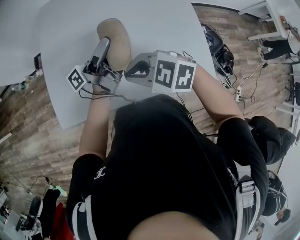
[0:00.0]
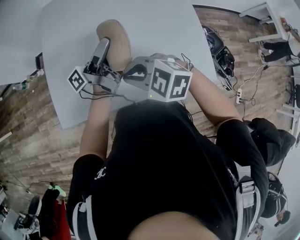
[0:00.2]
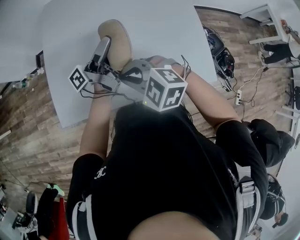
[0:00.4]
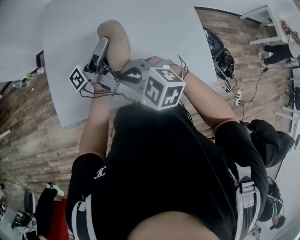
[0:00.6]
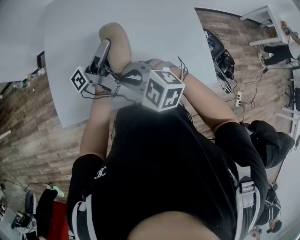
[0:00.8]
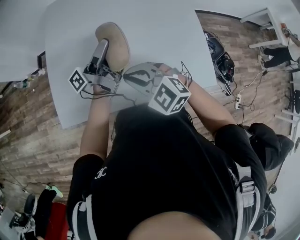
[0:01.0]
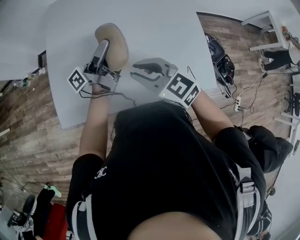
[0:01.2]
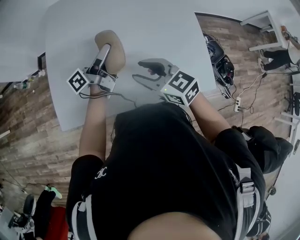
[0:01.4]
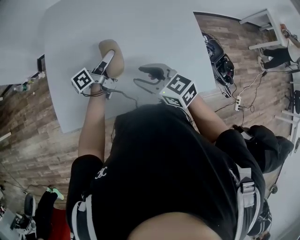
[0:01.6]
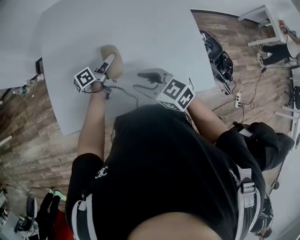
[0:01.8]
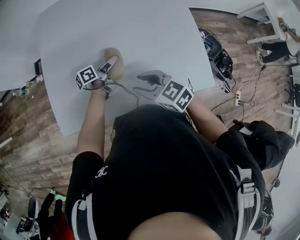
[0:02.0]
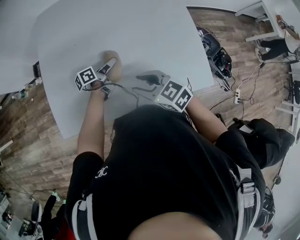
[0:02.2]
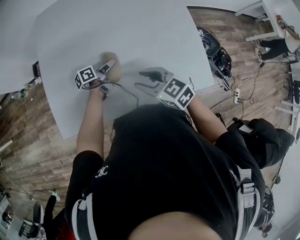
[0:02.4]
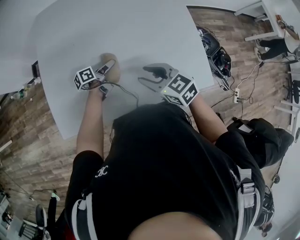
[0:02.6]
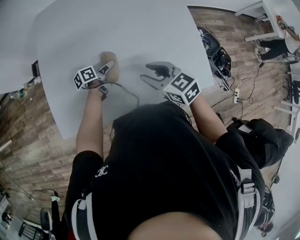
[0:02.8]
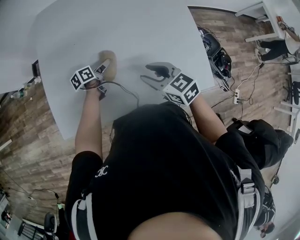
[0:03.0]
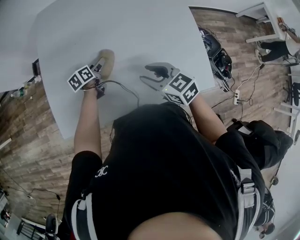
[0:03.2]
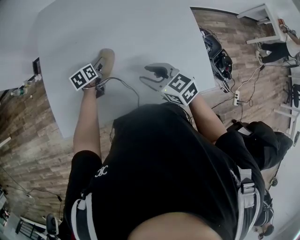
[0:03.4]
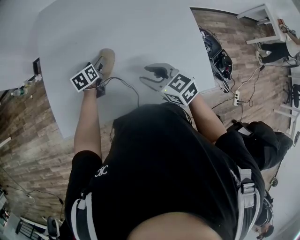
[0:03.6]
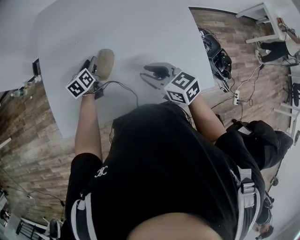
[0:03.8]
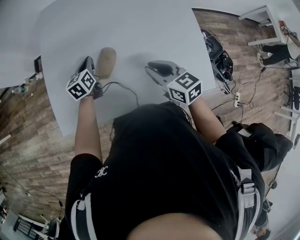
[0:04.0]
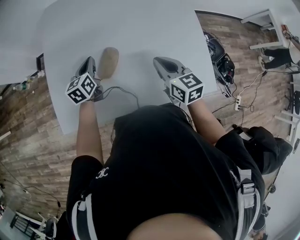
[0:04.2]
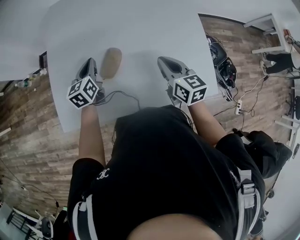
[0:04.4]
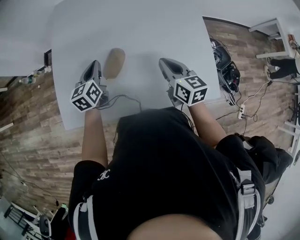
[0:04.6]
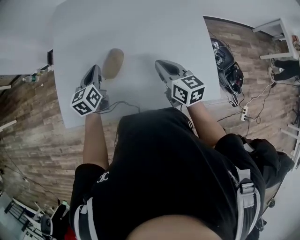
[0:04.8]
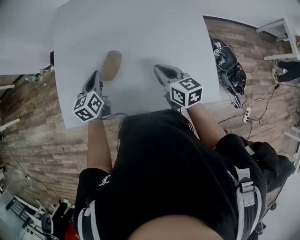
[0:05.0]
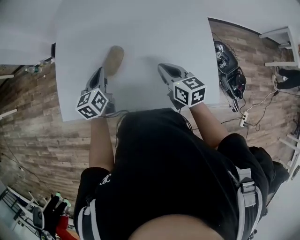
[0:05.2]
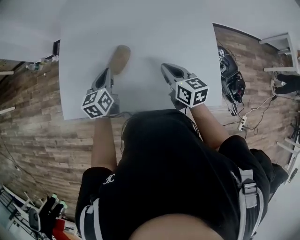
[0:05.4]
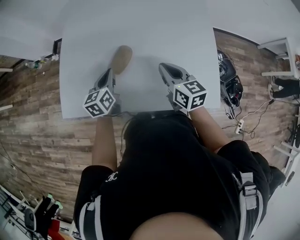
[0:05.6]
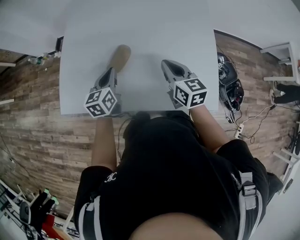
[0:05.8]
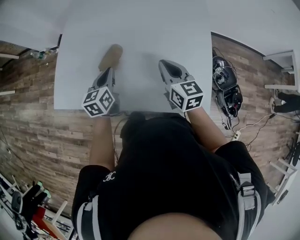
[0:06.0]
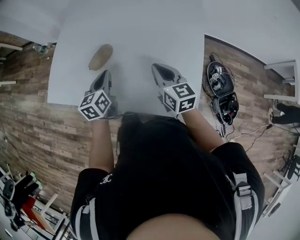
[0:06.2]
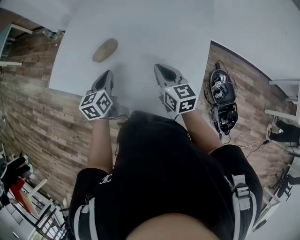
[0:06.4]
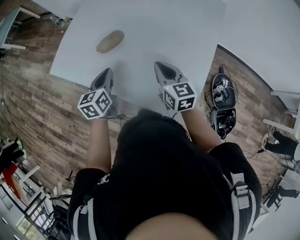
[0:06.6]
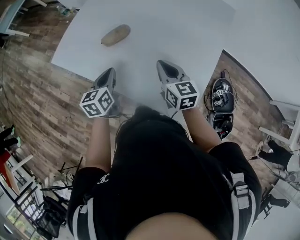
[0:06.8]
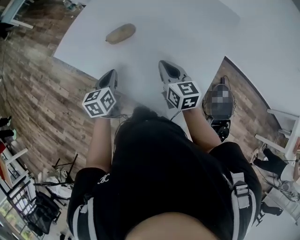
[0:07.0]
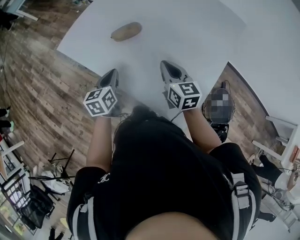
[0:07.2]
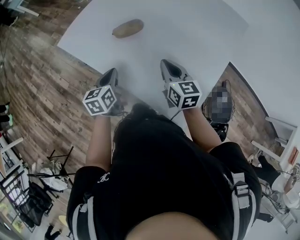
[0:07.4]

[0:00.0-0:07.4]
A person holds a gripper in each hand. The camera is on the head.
0:00.0 to 0:01.4: The left gripper moves downward, approximately 5 cm. Meanwhile the right gripper moves to the right, about 5 cm, swivels approximately 40 degrees, and opens up.
0:01.4 to 0:03.0: The left gripper travels downward by approximately 20 cm, and points its fingers roughly 50 degrees further downward; the right gripper moves downward and to the right, some 10 cm.
0:03.0 to 0:04.4: The left gripper is displaced upward and to the left by roughly 15 cm, changes its angle by roughly 50 degrees, and closes its fingers; the right gripper moves to the right, about 5 cm, turns by some 30 degrees, and closes up.
0:04.4 to 0:06.0: The right gripper is displaced to the right by roughly 10 cm. The left gripper heads to the right and backward, covering roughly 15 cm.
0:06.0 to 0:07.4: The right gripper turns by roughly 30 degrees. Meanwhile the left gripper changes place by some 10 cm, and changes its angle by some 30 degrees.

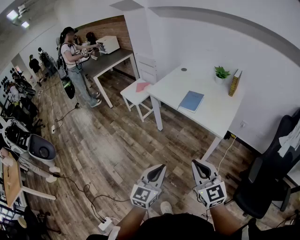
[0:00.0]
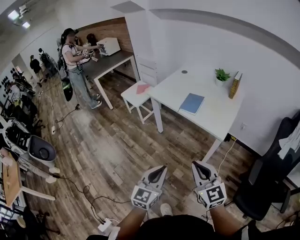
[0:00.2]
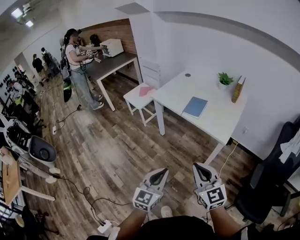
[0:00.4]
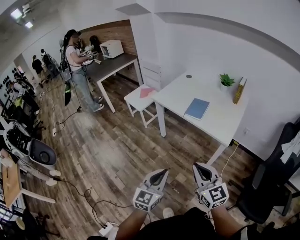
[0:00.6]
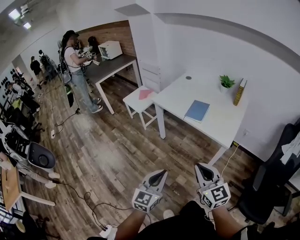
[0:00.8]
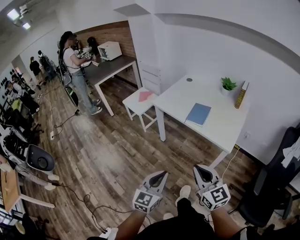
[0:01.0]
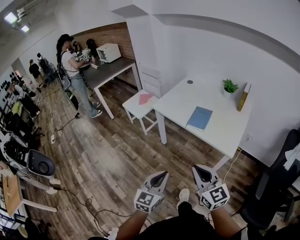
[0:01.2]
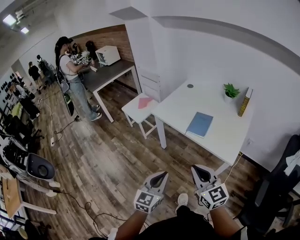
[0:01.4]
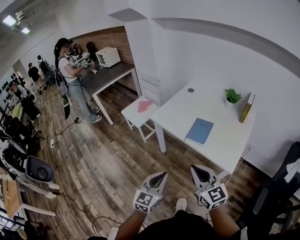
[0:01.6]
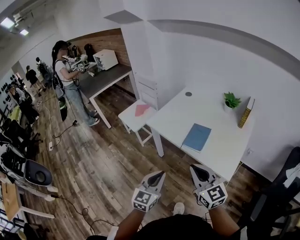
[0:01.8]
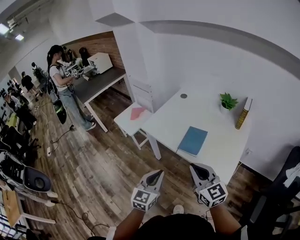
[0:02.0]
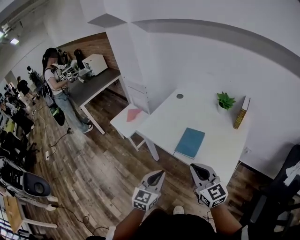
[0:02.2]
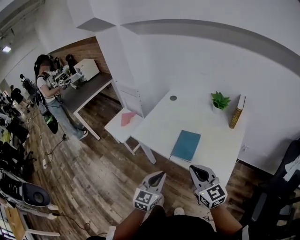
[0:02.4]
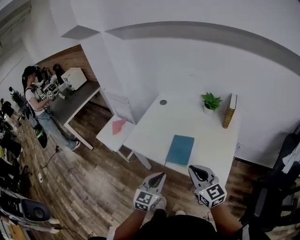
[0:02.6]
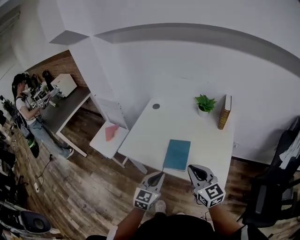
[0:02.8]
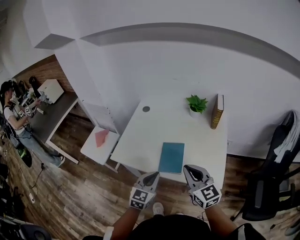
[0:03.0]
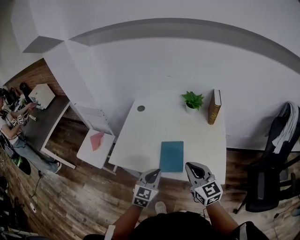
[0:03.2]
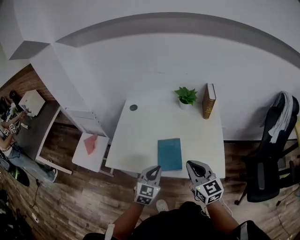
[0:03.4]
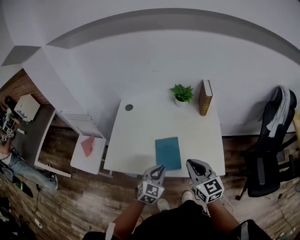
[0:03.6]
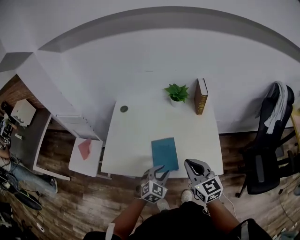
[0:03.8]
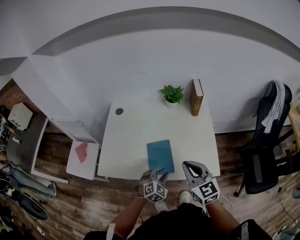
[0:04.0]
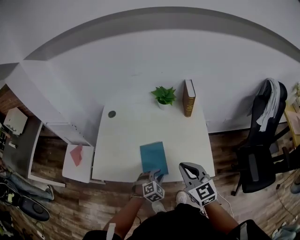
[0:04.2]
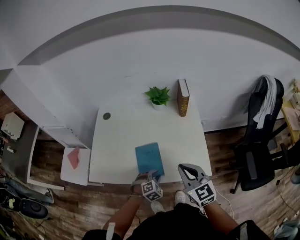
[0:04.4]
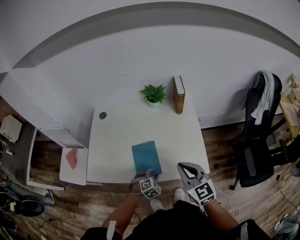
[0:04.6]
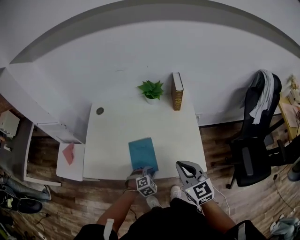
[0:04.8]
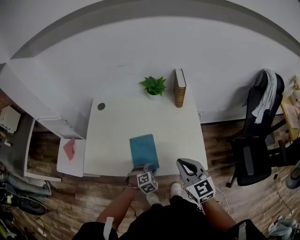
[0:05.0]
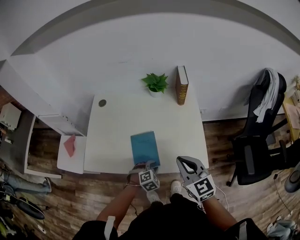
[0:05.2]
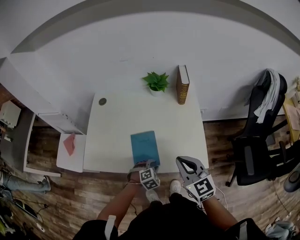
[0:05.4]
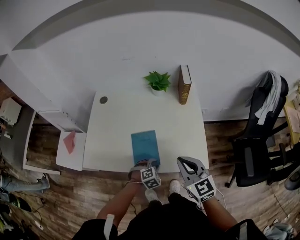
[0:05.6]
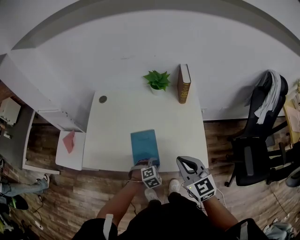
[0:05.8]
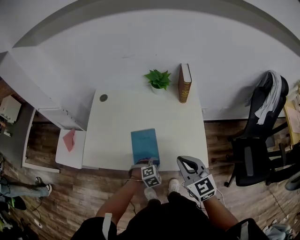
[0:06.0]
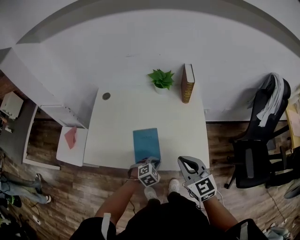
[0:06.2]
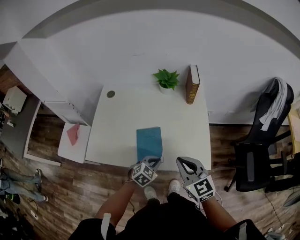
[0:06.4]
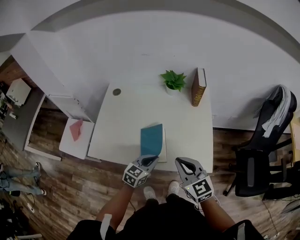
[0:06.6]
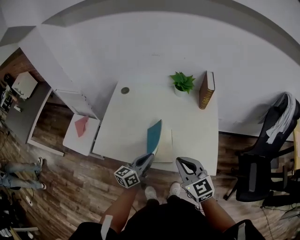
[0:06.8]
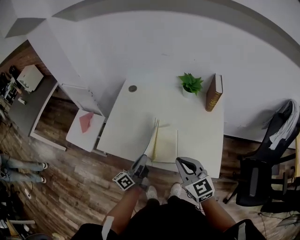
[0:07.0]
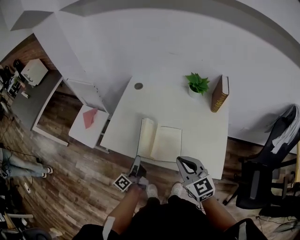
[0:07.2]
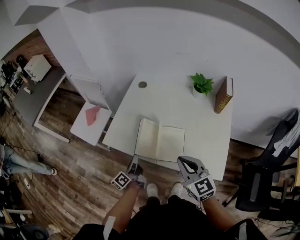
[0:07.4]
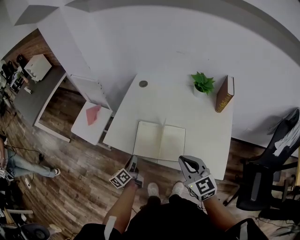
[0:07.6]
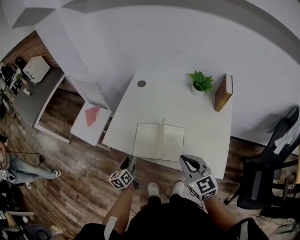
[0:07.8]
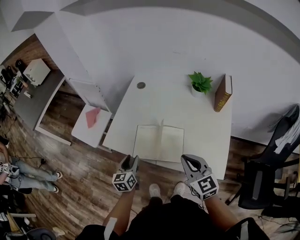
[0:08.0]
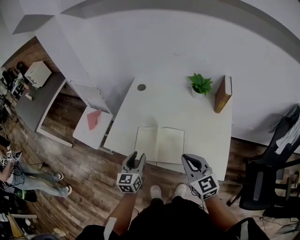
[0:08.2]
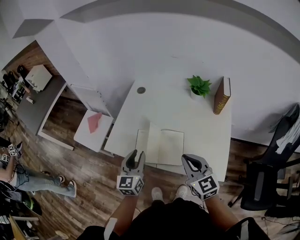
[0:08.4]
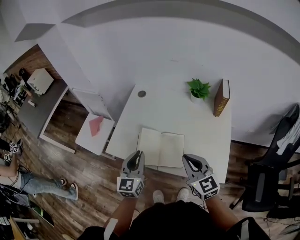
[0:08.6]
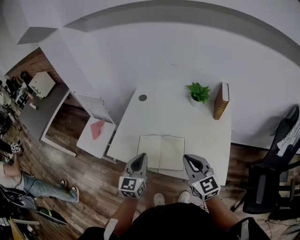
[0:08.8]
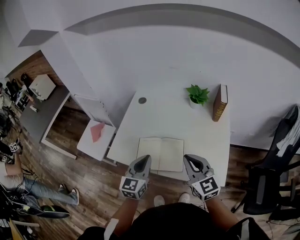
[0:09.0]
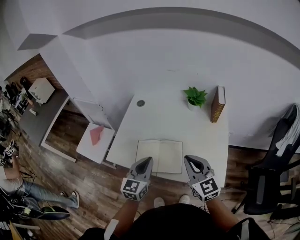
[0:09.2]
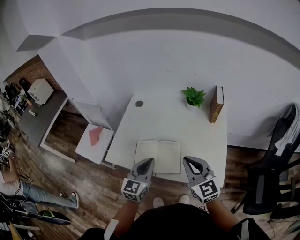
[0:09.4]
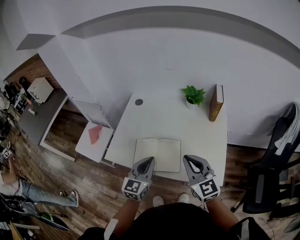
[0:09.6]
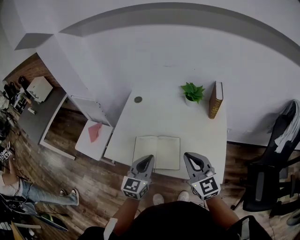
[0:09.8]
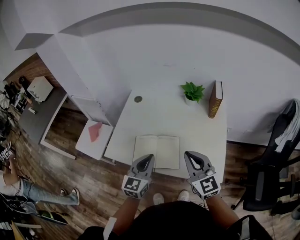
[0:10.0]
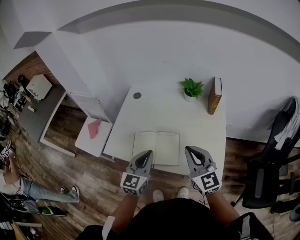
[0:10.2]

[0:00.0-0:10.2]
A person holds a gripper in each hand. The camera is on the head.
0:00.0 to 0:01.4: The two grippers go roughly 15 cm forward.
0:01.4 to 0:03.0: The two grippers go approximately 30 cm forward. The left gripper swivels about 30 degrees. The right gripper changes its angle by approximately 20 degrees.
0:03.0 to 0:04.4: The left gripper is displaced downward and to the right by roughly 20 cm, points its fingers about 40 degrees further downward, and opens up. Meanwhile the right gripper shifts roughly 5 cm to the right.
0:04.4 to 0:05.8: The grippers move only a little.
0:05.8 to 0:07.2: The right gripper ends up about 10 cm from where it was. The left gripper ends up approximately 25 cm from where it was, angles its fingers upward, by about 70 degrees, and closes its fingers.
0:07.2 to 0:08.8: The left gripper moves upward, approximately 10 cm, twists approximately 70 degrees clockwise, seen from behind, and opens, then closes once more.
0:08.8 to 0:10.2: The left gripper is displaced to the right by some 5 cm. The right gripper changes place by roughly 5 cm.

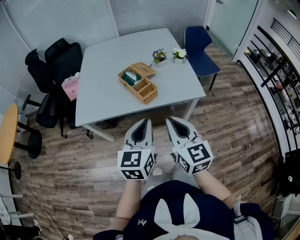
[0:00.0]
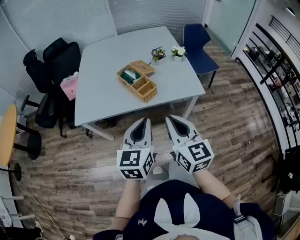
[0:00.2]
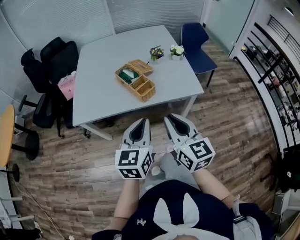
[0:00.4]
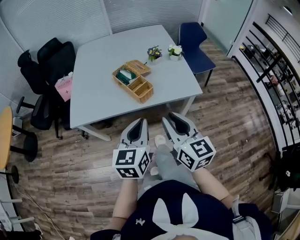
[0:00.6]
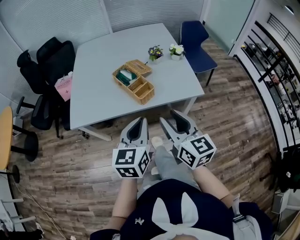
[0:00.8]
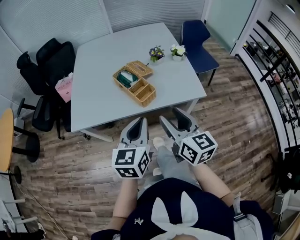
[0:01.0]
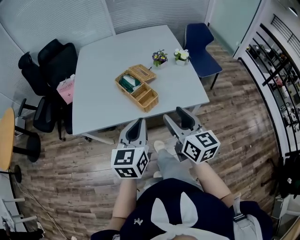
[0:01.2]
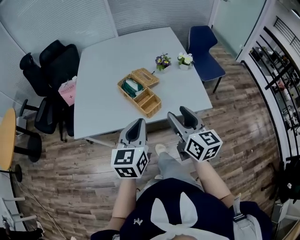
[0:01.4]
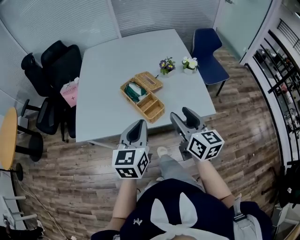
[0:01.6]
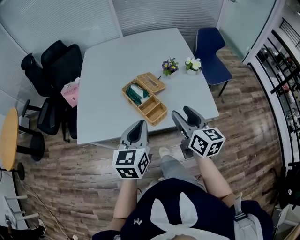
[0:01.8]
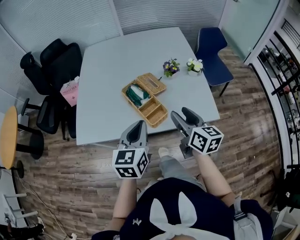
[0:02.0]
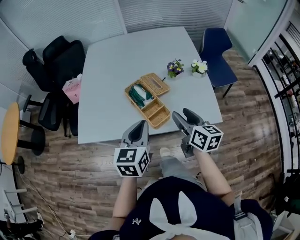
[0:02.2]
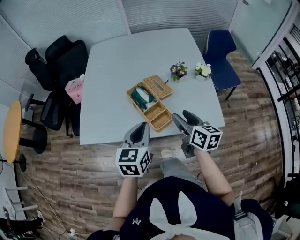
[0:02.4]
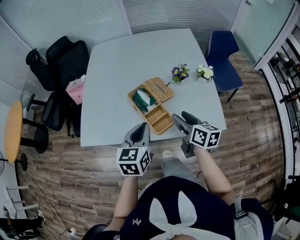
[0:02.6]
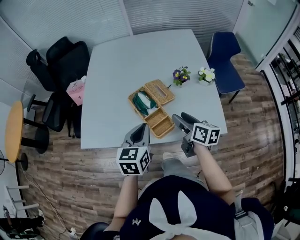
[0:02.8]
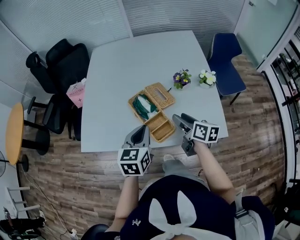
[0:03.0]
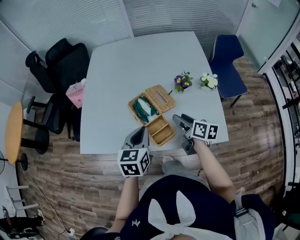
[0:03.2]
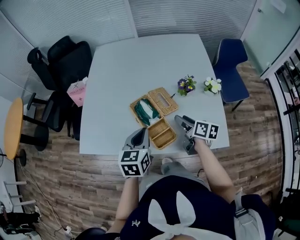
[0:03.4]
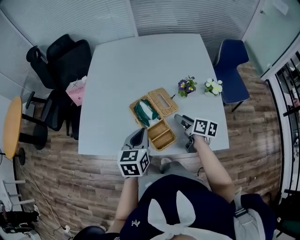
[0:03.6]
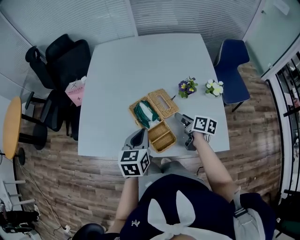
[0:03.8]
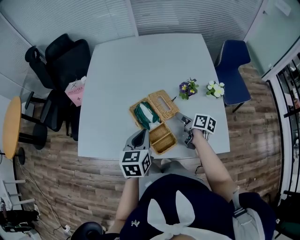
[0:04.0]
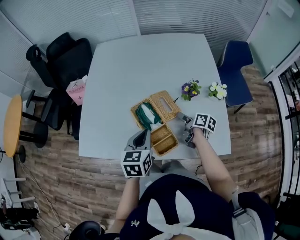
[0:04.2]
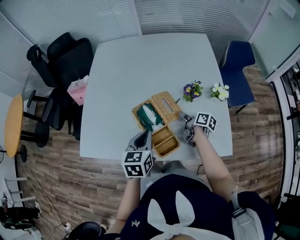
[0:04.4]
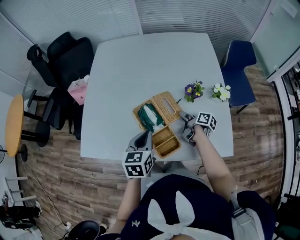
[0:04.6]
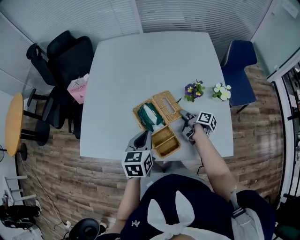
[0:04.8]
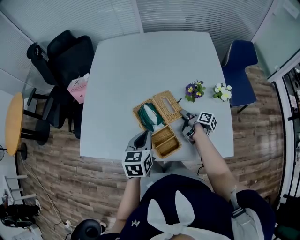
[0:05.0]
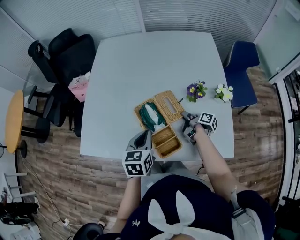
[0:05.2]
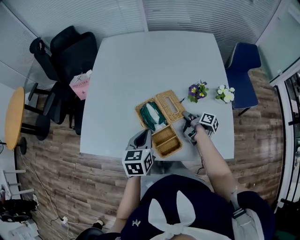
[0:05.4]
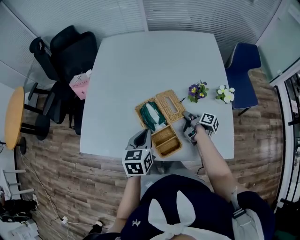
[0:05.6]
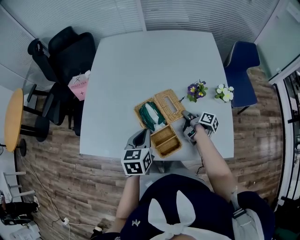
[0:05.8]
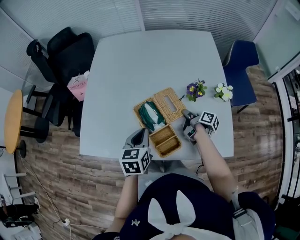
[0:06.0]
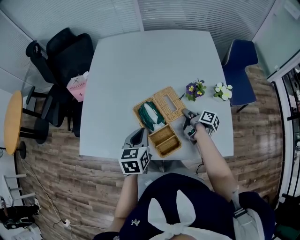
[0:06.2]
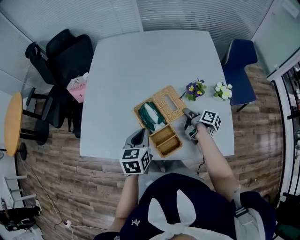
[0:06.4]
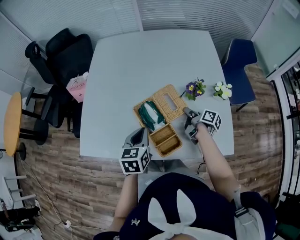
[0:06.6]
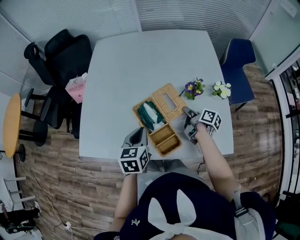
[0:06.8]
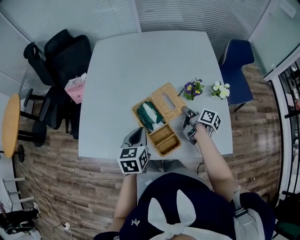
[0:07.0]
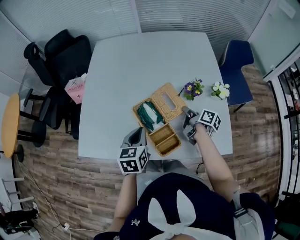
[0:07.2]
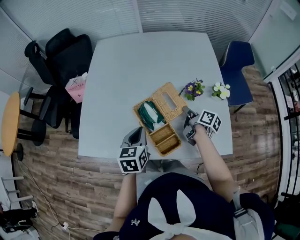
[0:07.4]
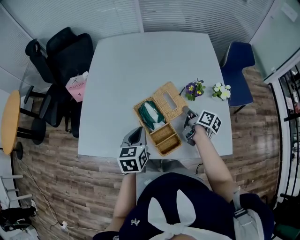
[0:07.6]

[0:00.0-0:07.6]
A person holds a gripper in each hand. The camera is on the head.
0:00.0 to 0:01.6: The two grippers go approximately 15 cm forward. The right gripper opens up.
0:01.6 to 0:03.0: Both grippers move forward and downward, some 20 cm. The right gripper swivels about 30 degrees.
0:03.0 to 0:04.6: The right gripper goes roughly 20 cm downward and forward, and turns by roughly 30 degrees, while the left gripper is displaced forward and downward by approximately 10 cm.
0:04.6 to 0:06.0: The right gripper closes up.
0:06.0 to 0:07.6: The right gripper heads upward, covering some 5 cm.
